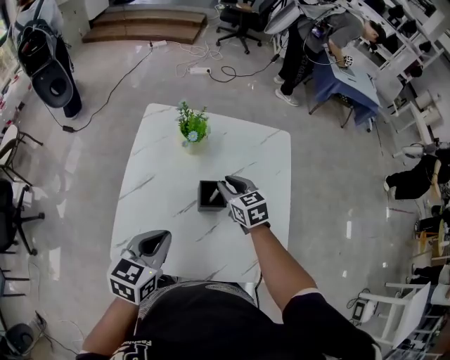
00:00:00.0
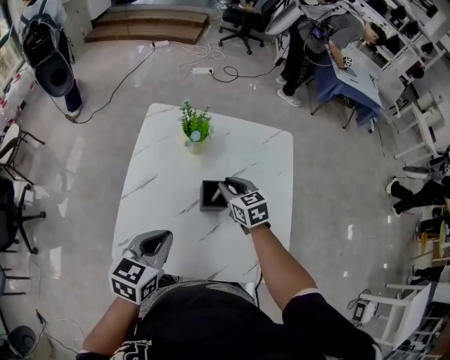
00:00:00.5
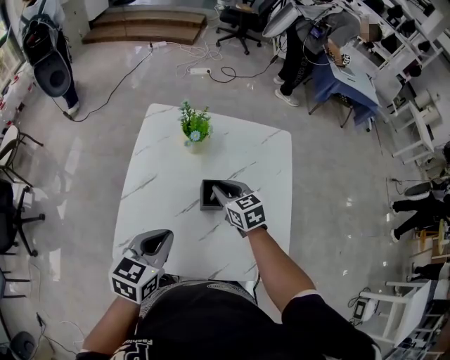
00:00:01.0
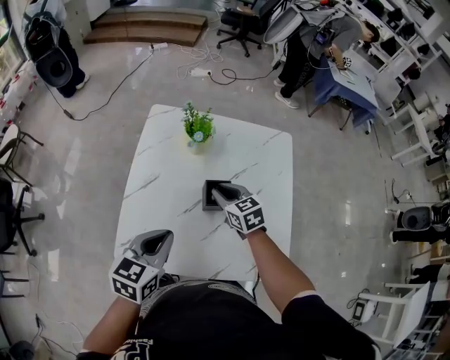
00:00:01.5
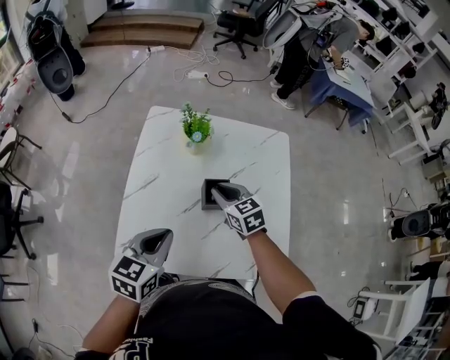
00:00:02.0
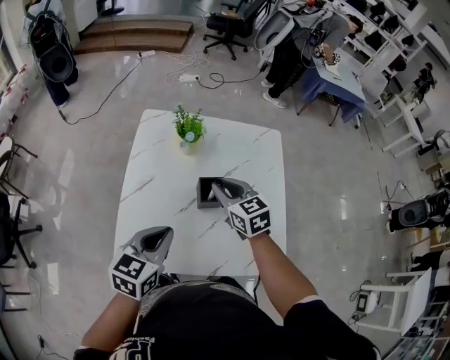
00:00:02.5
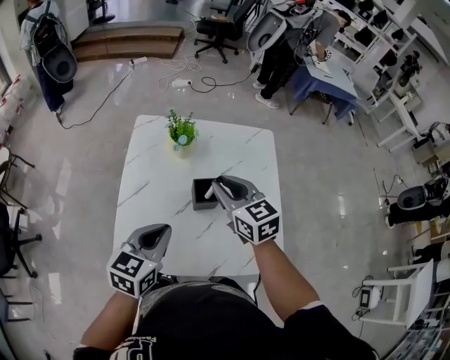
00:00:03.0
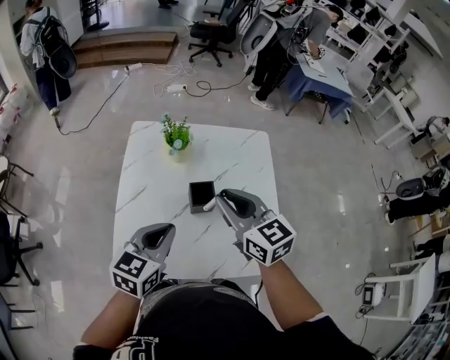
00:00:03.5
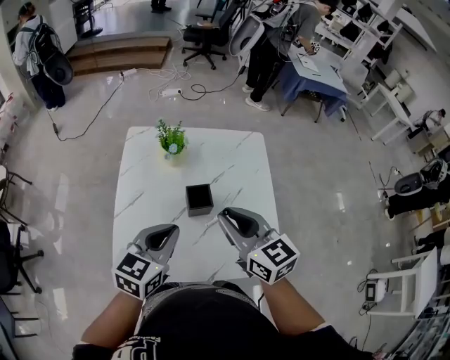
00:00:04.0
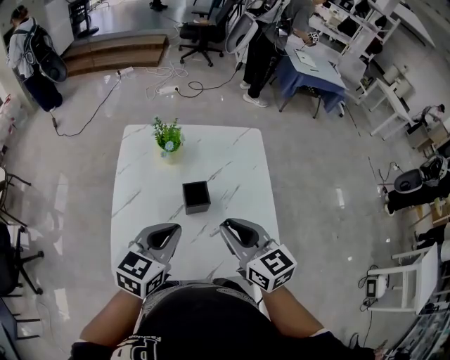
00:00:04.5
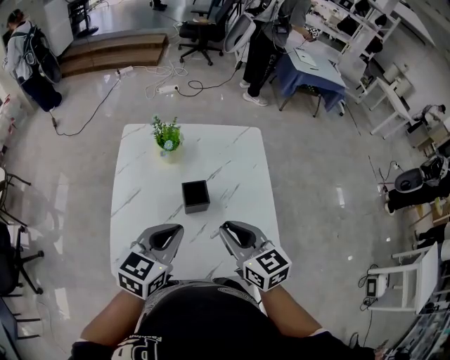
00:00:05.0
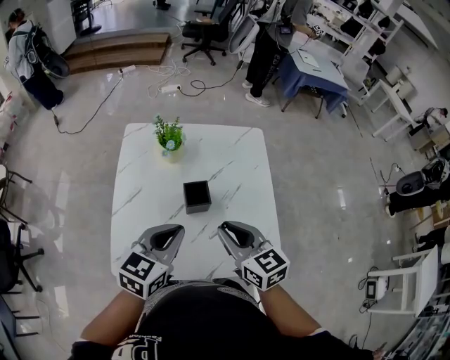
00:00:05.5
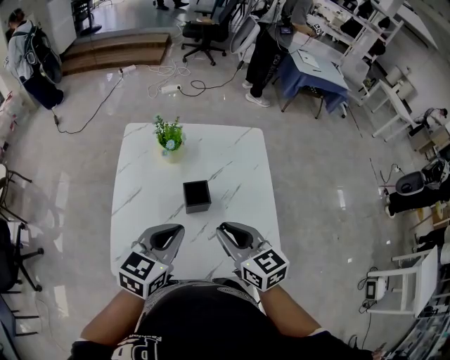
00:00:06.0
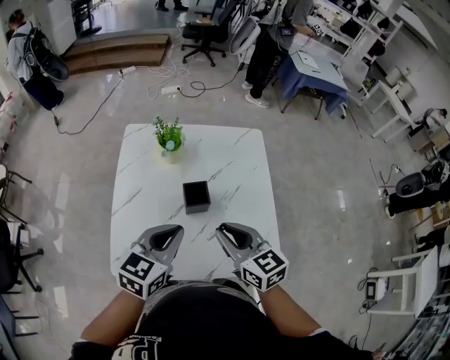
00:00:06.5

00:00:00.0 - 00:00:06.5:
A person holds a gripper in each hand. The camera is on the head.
00:00:00.0 - 00:00:02.0: The right gripper ends up some 5 cm from where it was.
00:00:02.0 - 00:00:04.5: The right gripper shifts approximately 20 cm upward, backward and to the right, and changes its angle by roughly 20 degrees, while the left gripper shifts approximately 5 cm to the right.
00:00:04.5 - 00:00:06.5: The grippers move only a little.

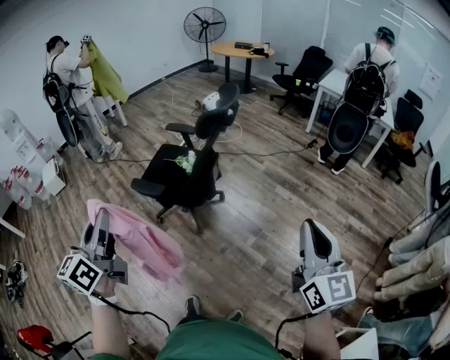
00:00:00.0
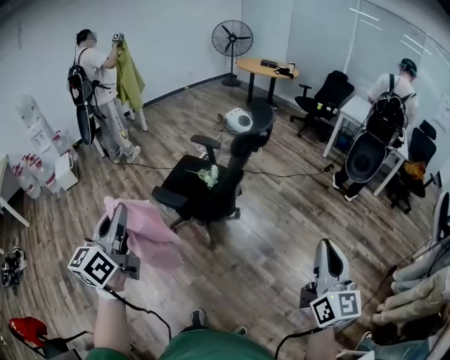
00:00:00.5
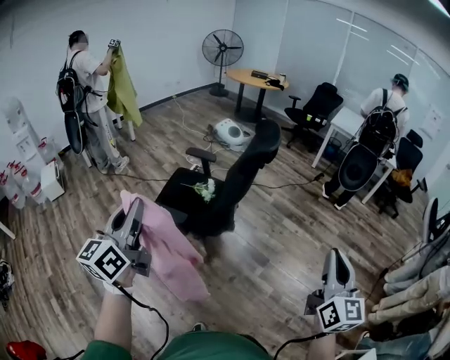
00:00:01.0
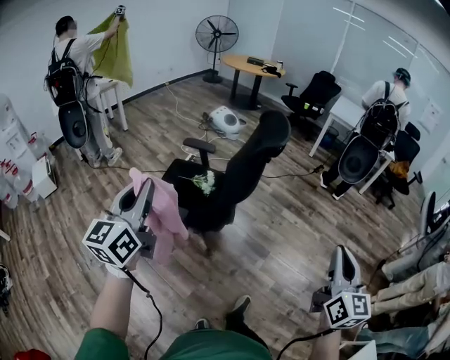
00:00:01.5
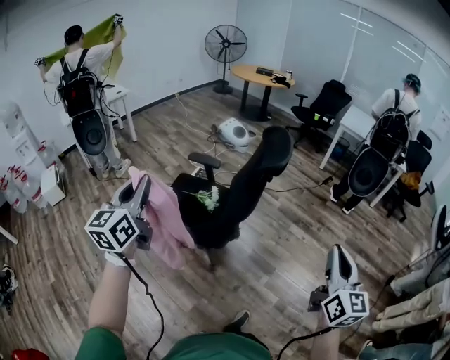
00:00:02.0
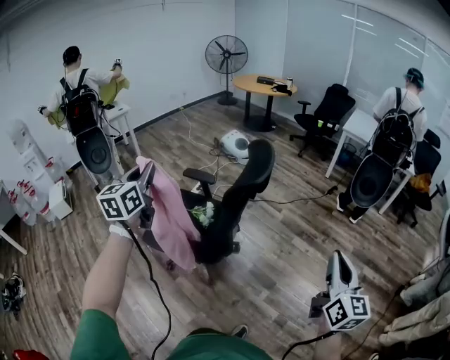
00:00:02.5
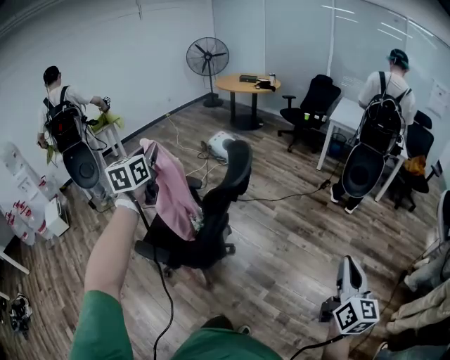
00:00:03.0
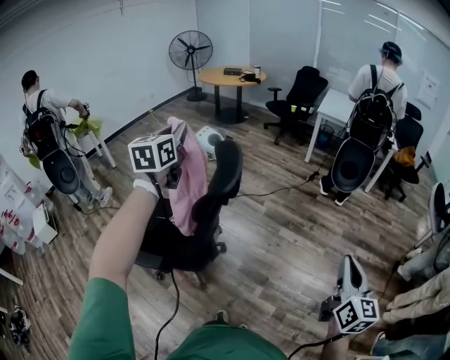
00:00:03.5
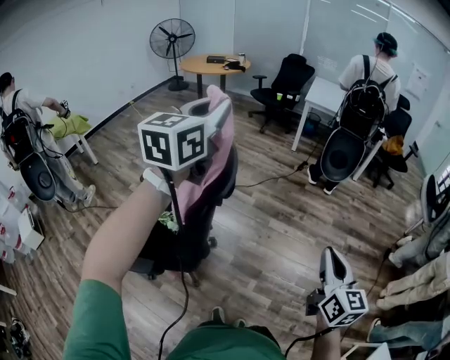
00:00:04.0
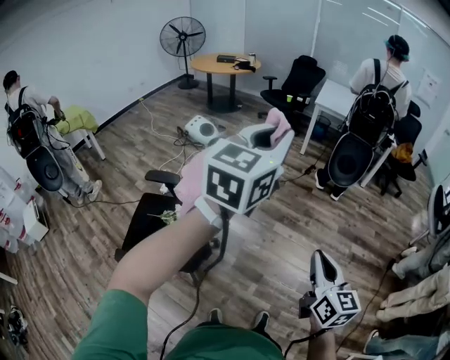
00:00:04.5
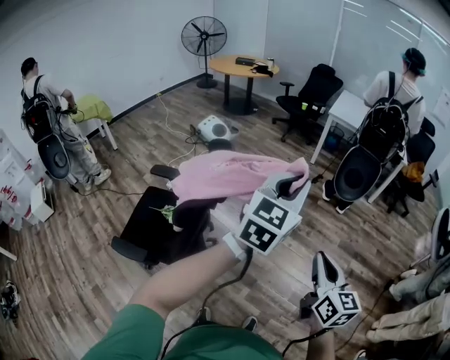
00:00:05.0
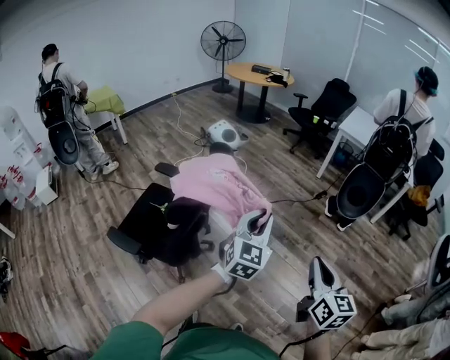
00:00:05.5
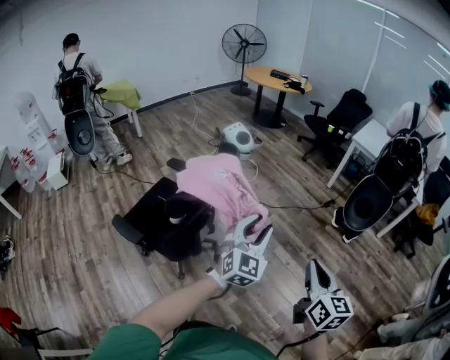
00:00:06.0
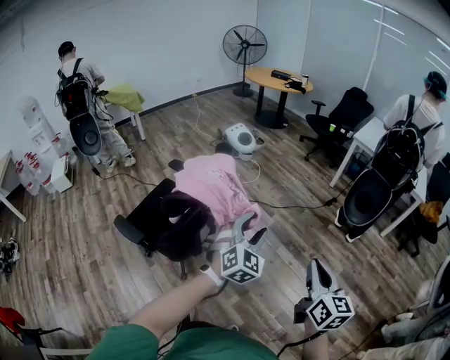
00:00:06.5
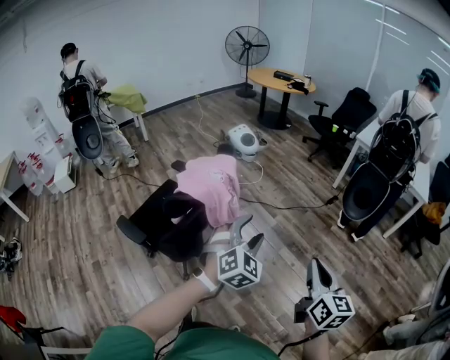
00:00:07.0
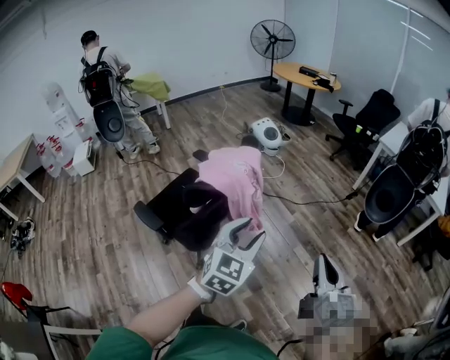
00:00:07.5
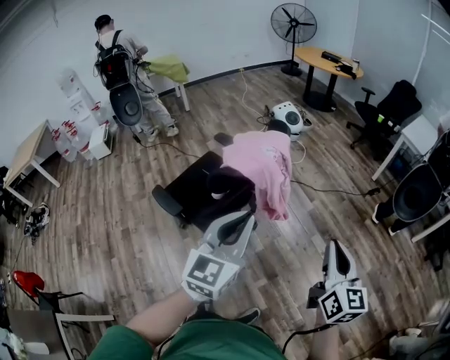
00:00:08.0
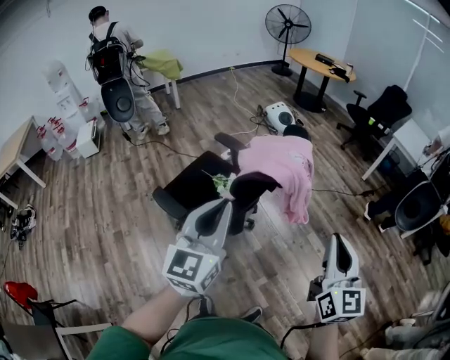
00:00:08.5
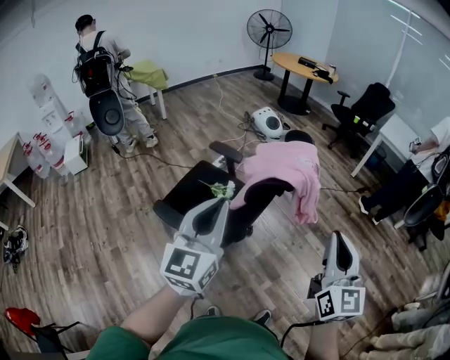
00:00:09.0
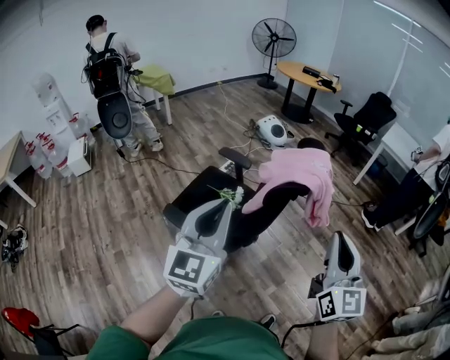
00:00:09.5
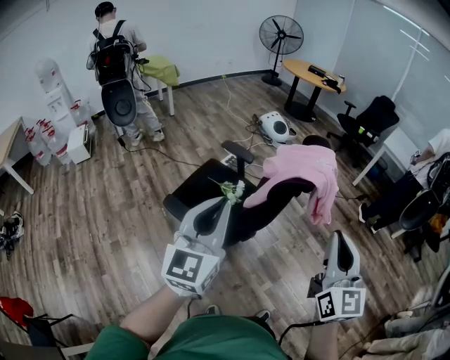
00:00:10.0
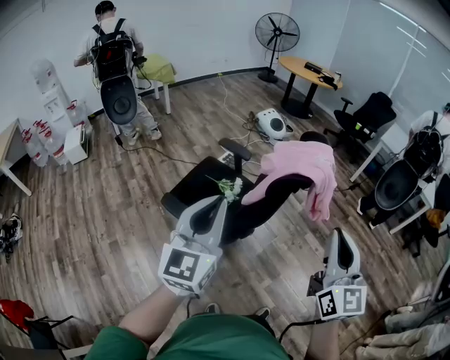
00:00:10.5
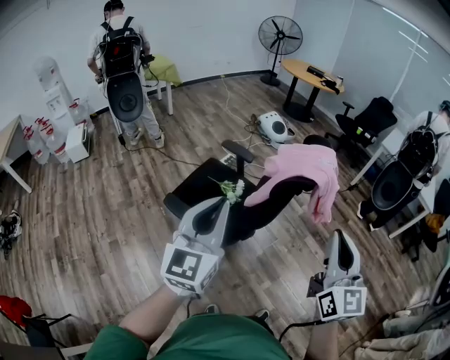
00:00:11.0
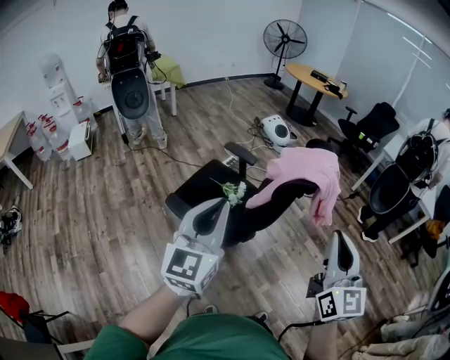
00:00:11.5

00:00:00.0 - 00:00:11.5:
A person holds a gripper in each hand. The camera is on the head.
00:00:00.0 - 00:00:02.0: The left gripper goes some 35 cm forward and to the left. Meanwhile the right gripper heads forward and to the left, covering roughly 20 cm.
00:00:02.0 - 00:00:04.0: The left gripper shifts about 50 cm forward and to the right, and rotates approximately 30 degrees, while the right gripper heads forward and to the right, covering roughly 20 cm.
00:00:04.0 - 00:00:06.0: The right gripper travels forward and to the right by some 15 cm, and rotates some 20 degrees; the left gripper shifts approximately 35 cm downward and to the right, swivels roughly 40 degrees, and opens.
00:00:06.0 - 00:00:07.5: The left gripper shifts approximately 10 cm to the left and backward.
00:00:07.5 - 00:00:09.5: The grippers both shift to the left by roughly 35 cm. The left gripper swivels about 30 degrees, and closes. The right gripper rotates some 30 degrees.
00:00:09.5 - 00:00:11.5: The left gripper changes place by approximately 5 cm.

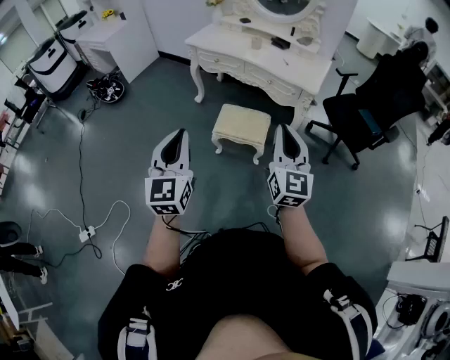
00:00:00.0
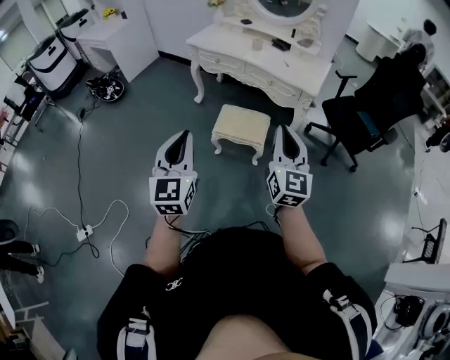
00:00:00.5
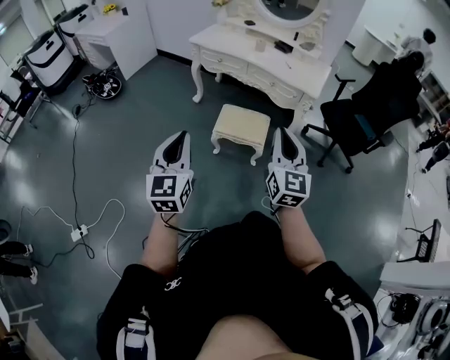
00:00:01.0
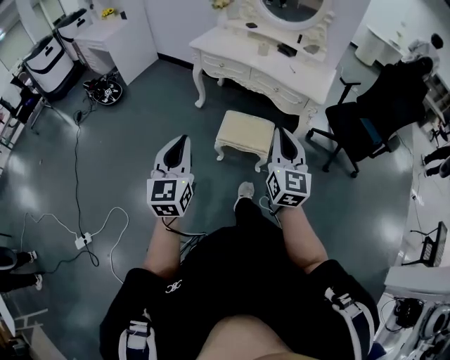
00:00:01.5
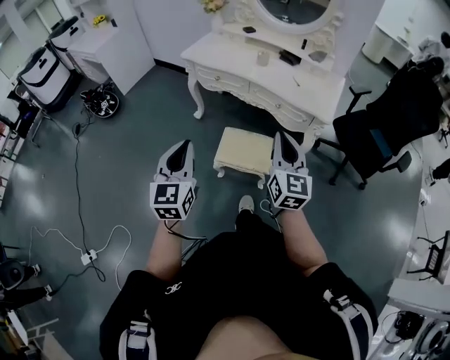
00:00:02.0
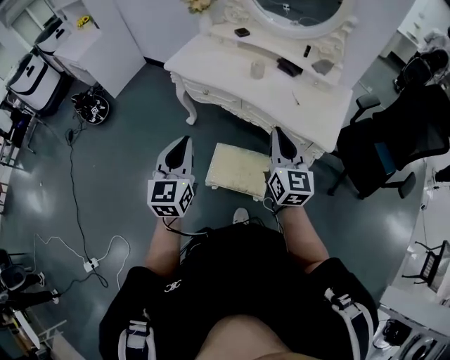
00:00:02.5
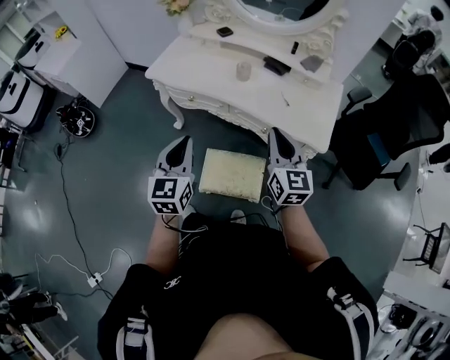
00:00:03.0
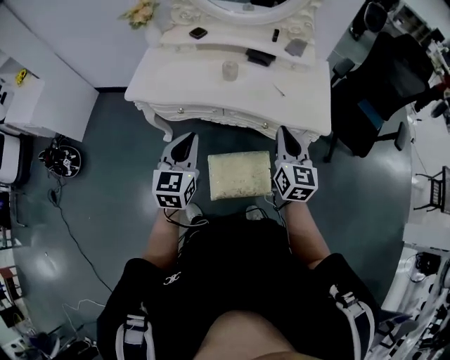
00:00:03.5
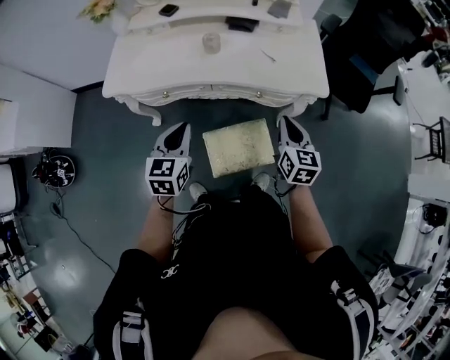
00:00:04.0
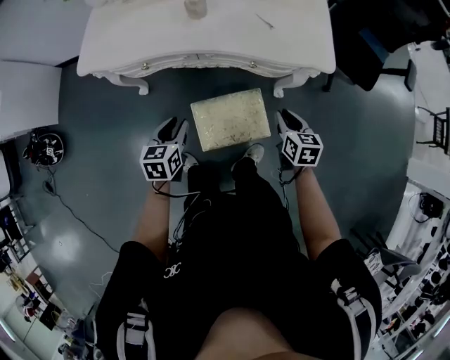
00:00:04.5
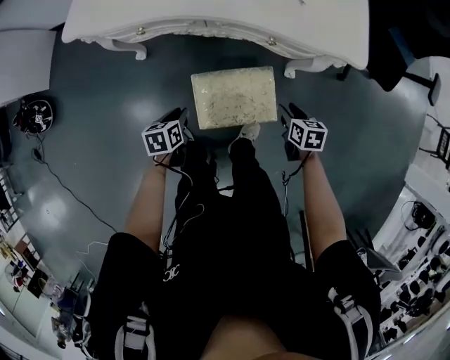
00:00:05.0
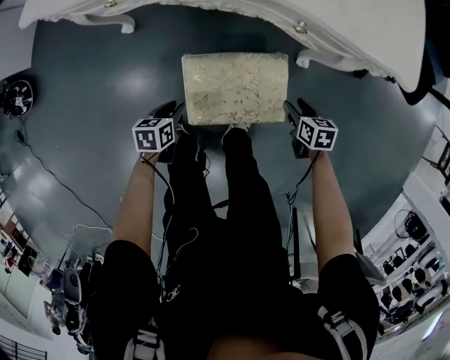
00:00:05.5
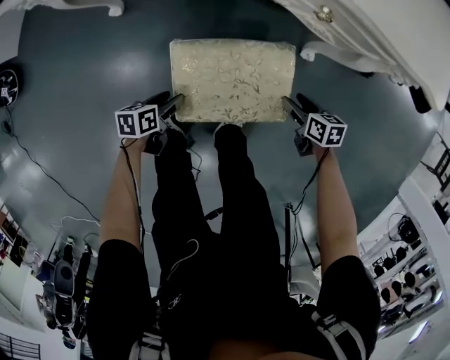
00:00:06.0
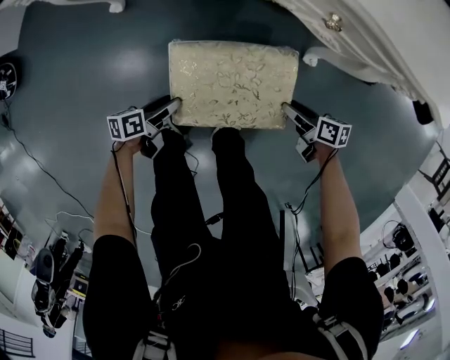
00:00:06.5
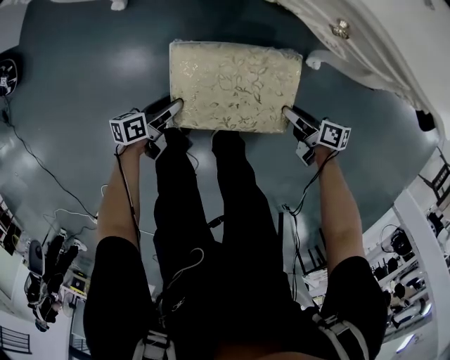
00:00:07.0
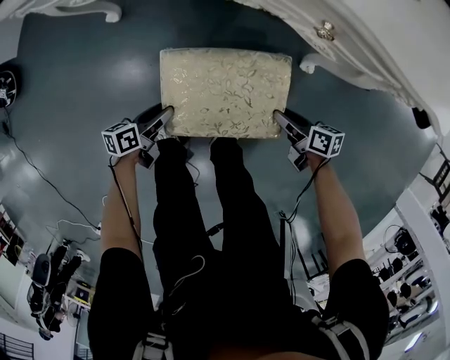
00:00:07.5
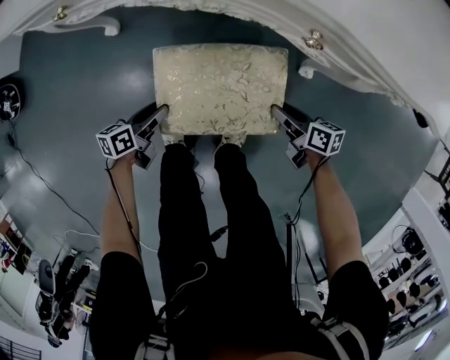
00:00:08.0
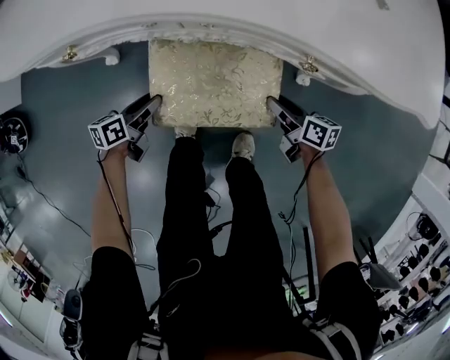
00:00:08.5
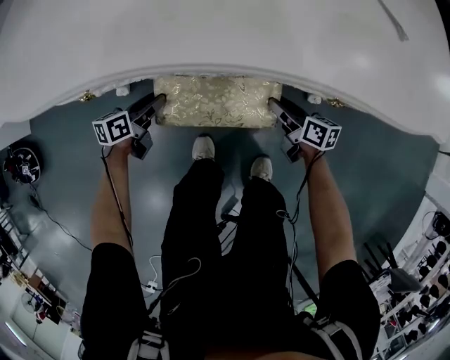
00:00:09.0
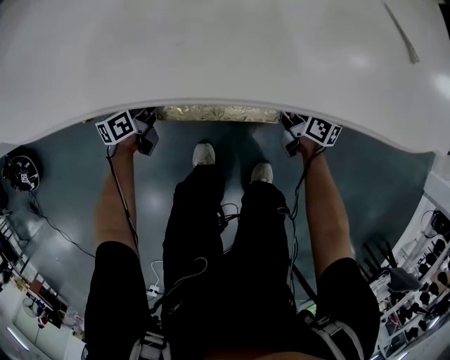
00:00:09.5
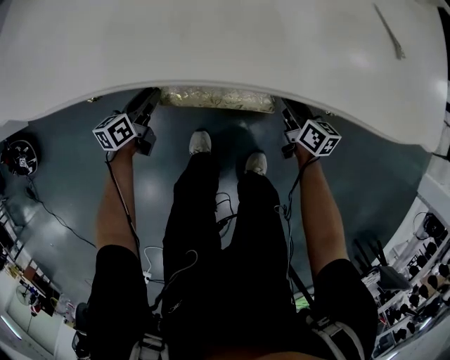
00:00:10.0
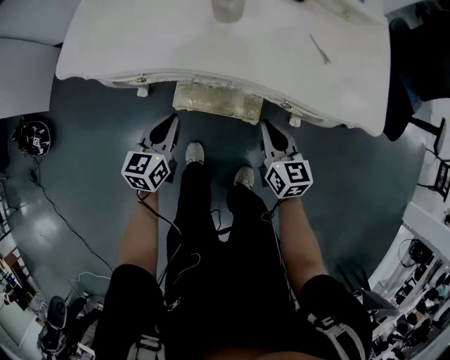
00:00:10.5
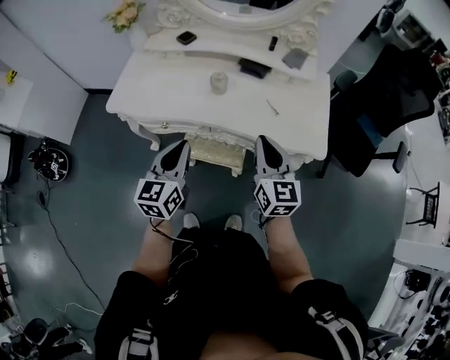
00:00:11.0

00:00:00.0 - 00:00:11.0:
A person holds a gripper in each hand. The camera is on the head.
00:00:00.0 - 00:00:02.0: The two grippers go approximately 25 cm forward.
00:00:02.0 - 00:00:03.5: Both grippers travel together forward, approximately 40 cm. The left gripper turns by about 30 degrees. Meanwhile the right gripper rotates roughly 20 degrees.
00:00:03.5 - 00:00:05.5: The grippers both shift downward by about 60 cm. The left gripper angles its fingers downward, by some 40 degrees, and opens, while the right gripper angles its fingers downward, by roughly 50 degrees, and opens.
00:00:05.5 - 00:00:07.5: Both grippers move downward, about 10 cm. The left gripper changes its angle by roughly 30 degrees. The right gripper turns by approximately 30 degrees.
00:00:07.5 - 00:00:09.0: The right gripper moves forward and to the left, some 15 cm, and swivels some 20 degrees; the left gripper moves forward, roughly 25 cm.
00:00:09.0 - 00:00:11.0: The grippers both shift upward by approximately 60 cm. The left gripper swivels about 50 degrees, and closes up. Meanwhile the right gripper rotates around the line of its fingers by some 50 degrees, counterclockwise from behind, and closes.
